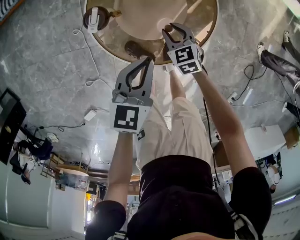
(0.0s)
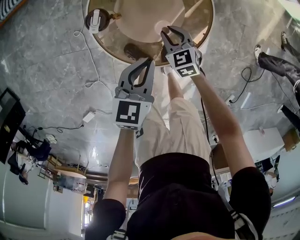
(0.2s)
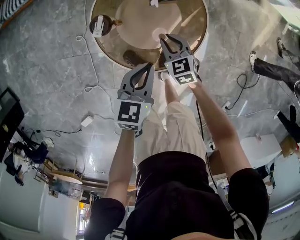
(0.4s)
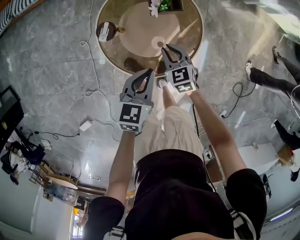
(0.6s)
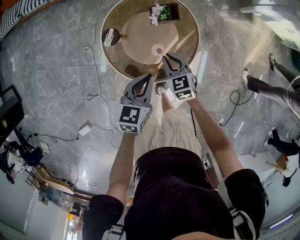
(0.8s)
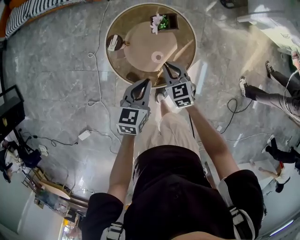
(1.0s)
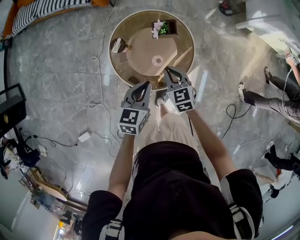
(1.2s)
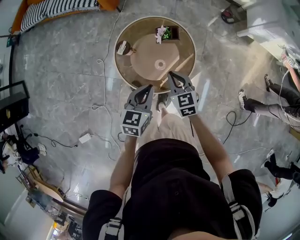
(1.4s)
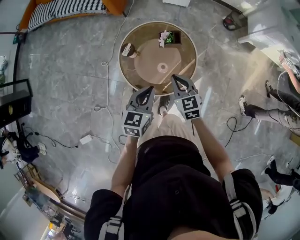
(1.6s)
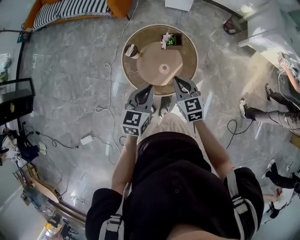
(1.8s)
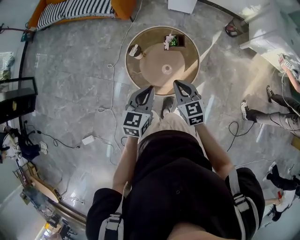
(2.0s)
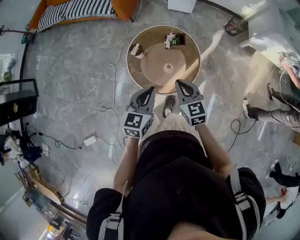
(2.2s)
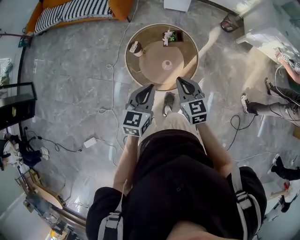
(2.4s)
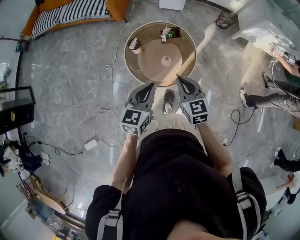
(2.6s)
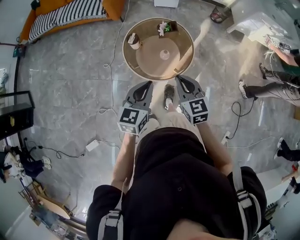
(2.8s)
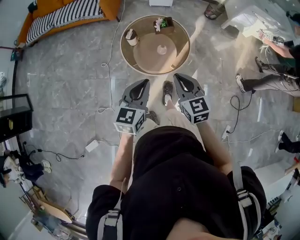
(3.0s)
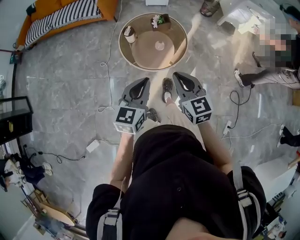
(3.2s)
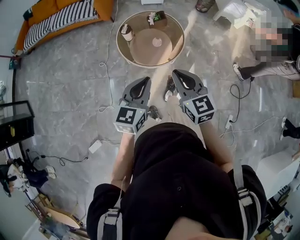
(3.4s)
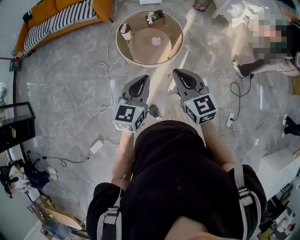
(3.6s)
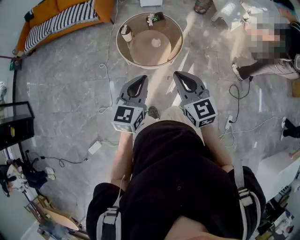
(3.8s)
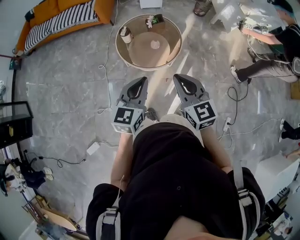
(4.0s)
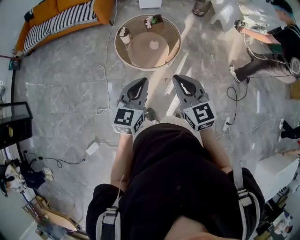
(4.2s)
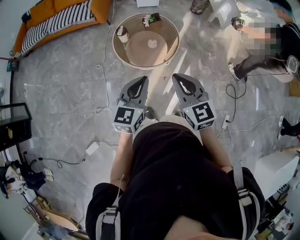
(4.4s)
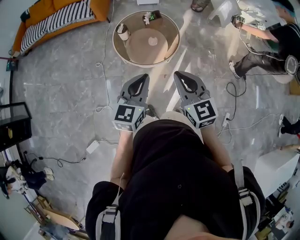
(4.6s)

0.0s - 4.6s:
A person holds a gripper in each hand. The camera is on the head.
0.0s - 1.6s: The left gripper travels upward by some 20 cm. The right gripper moves upward, approximately 30 cm, and closes its fingers.
1.6s - 3.0s: The right gripper moves backward and upward, about 25 cm. Meanwhile the left gripper heads backward, upward and to the left, covering some 25 cm.
3.0s - 4.6s: The right gripper goes some 15 cm backward and upward. Meanwhile the left gripper shifts about 10 cm backward.

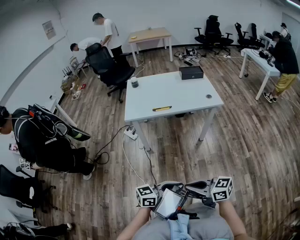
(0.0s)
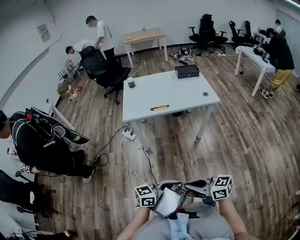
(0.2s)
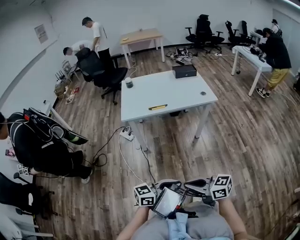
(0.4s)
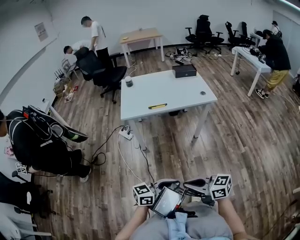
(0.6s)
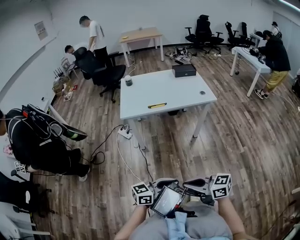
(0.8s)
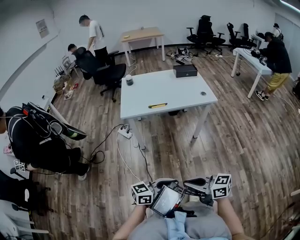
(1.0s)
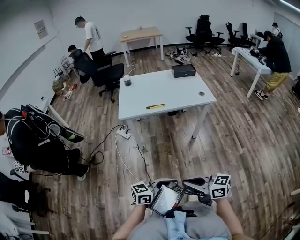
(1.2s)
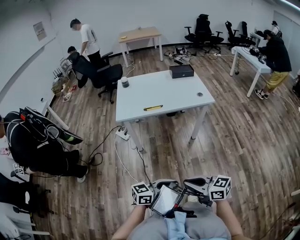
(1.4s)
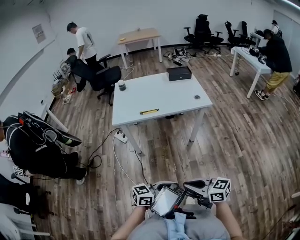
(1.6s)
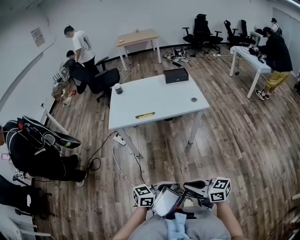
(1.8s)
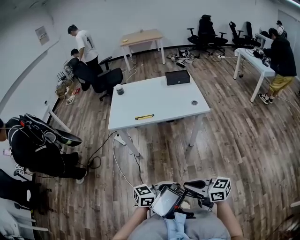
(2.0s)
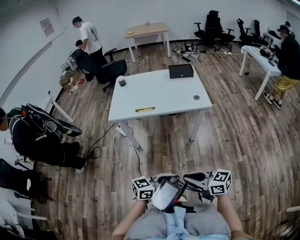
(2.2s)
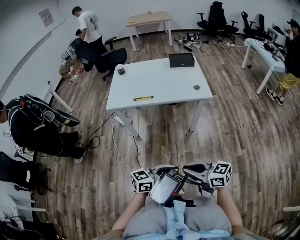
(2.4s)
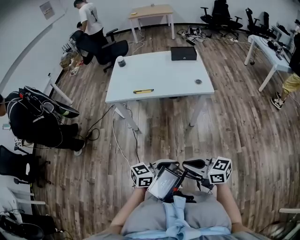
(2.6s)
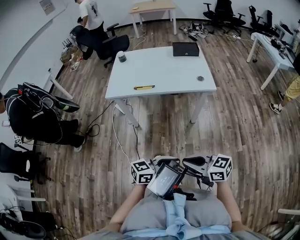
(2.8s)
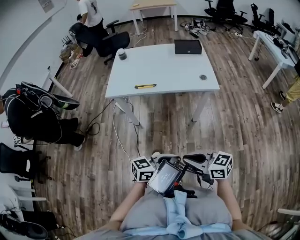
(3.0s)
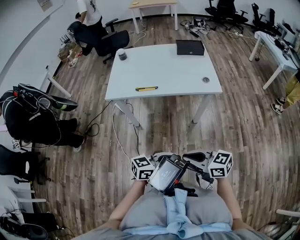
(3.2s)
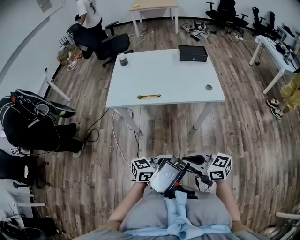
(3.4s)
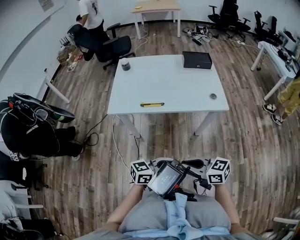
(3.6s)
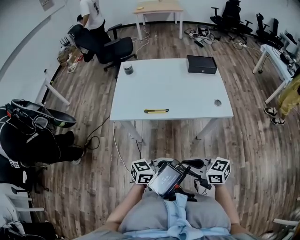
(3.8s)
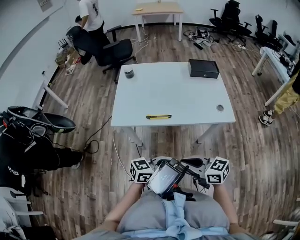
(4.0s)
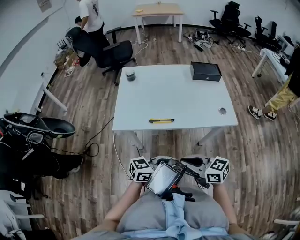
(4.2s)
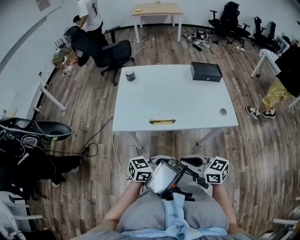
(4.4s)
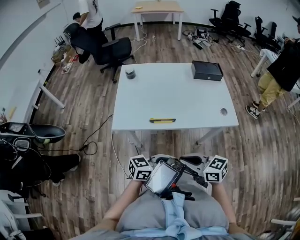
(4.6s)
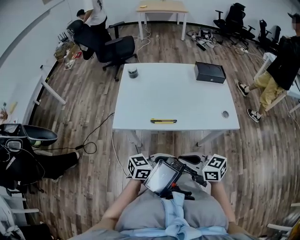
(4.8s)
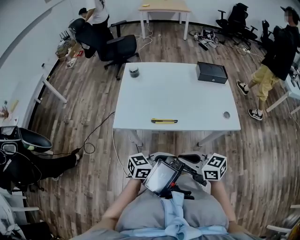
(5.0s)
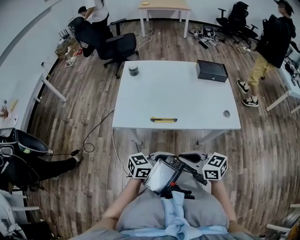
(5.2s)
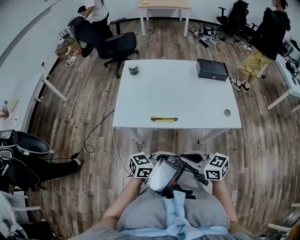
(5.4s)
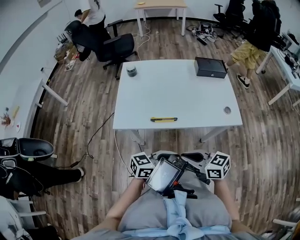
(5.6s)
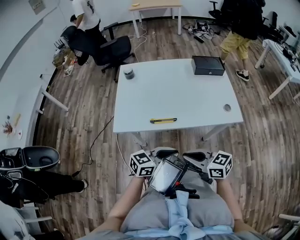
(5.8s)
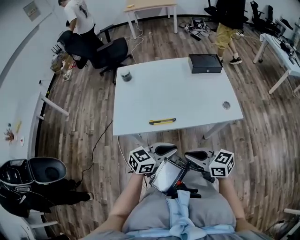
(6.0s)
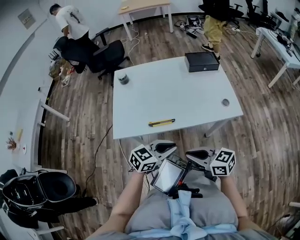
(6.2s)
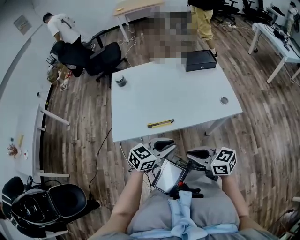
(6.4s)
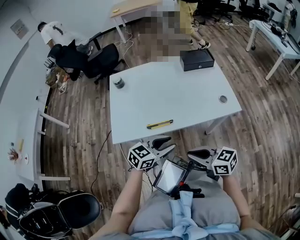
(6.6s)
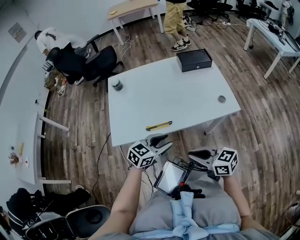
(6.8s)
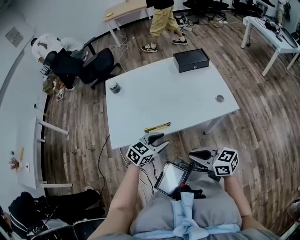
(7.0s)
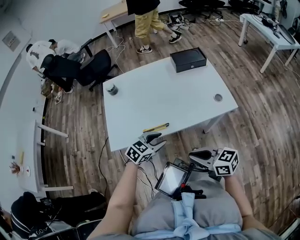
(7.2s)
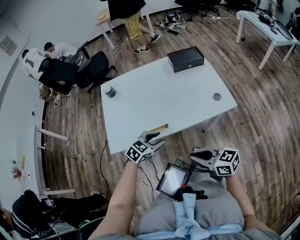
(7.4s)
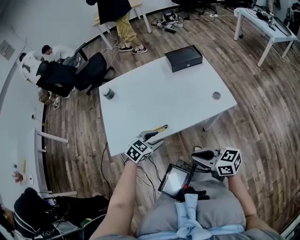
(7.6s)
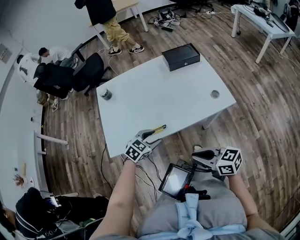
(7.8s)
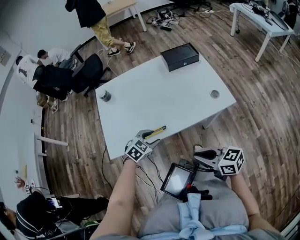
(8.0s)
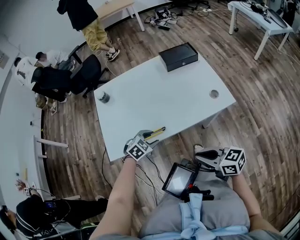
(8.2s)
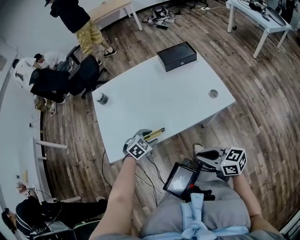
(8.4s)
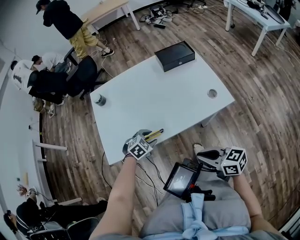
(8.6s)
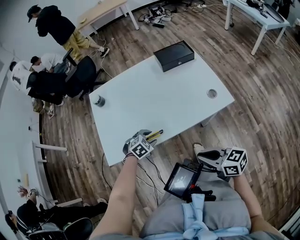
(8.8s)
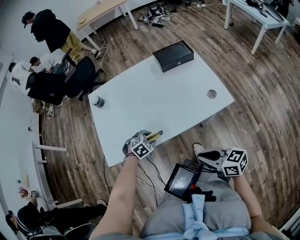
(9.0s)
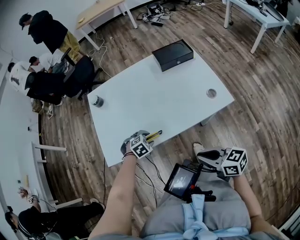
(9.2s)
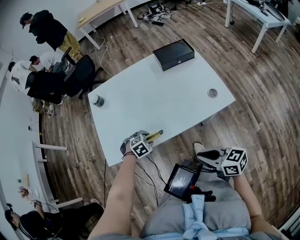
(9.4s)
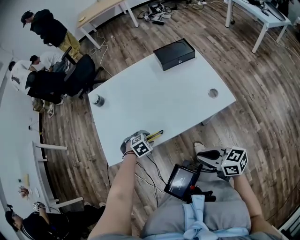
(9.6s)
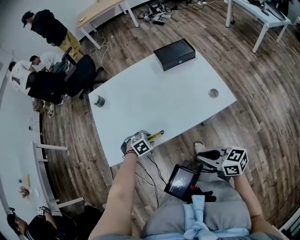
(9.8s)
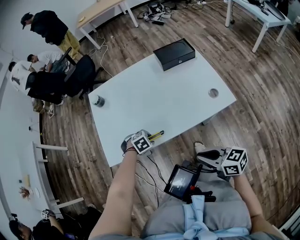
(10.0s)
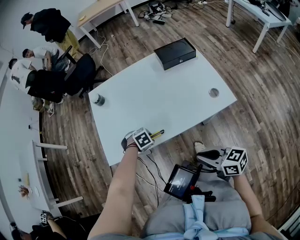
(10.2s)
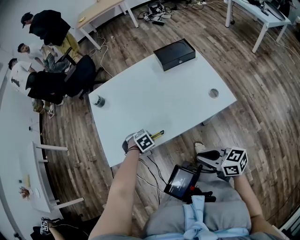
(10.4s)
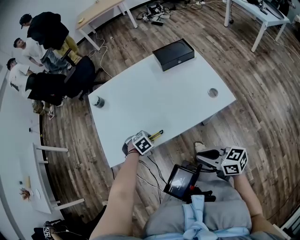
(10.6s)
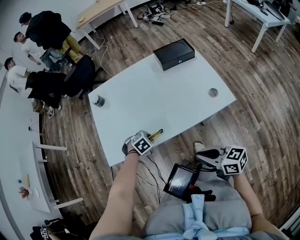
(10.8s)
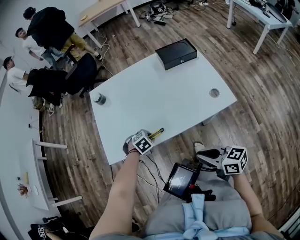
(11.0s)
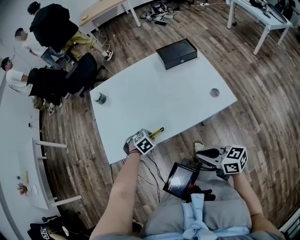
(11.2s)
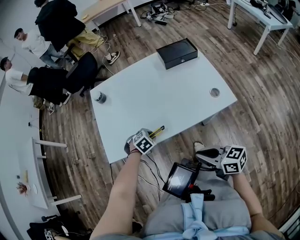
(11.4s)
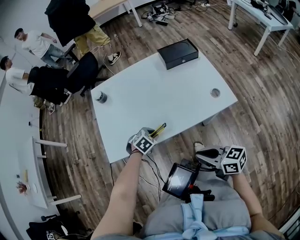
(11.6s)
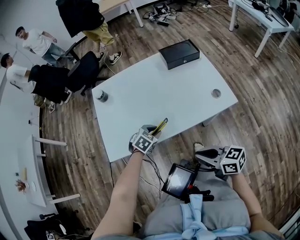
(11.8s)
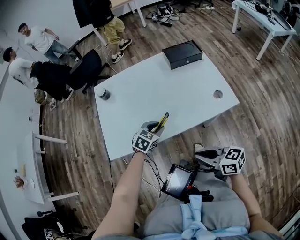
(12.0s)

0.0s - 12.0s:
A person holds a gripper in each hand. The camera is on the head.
0.0s - 1.6s: The left gripper shifts by approximately 5 cm. Meanwhile the right gripper ends up about 5 cm from where it was.
1.6s - 3.0s: The left gripper ends up about 15 cm from where it was; the right gripper changes place by roughly 15 cm.
3.0s - 4.4s: The left gripper changes place by some 30 cm. The right gripper ends up about 30 cm from where it was.
4.4s - 6.0s: The left gripper changes place by some 5 cm.
6.0s - 7.6s: The left gripper changes place by roughly 15 cm, swivels roughly 30 degrees, and opens its fingers.
7.6s - 9.0s: The right gripper ends up approximately 5 cm from where it was. Meanwhile the left gripper goes about 10 cm downward, and turns by approximately 30 degrees.
9.0s - 10.4s: The grippers make only small movements.
10.4s - 12.0s: The left gripper moves upward, roughly 10 cm, and tilts its fingers some 30 degrees upward.

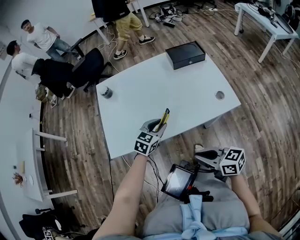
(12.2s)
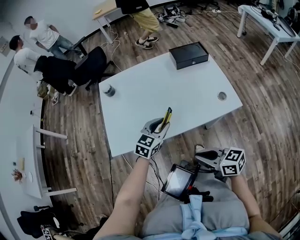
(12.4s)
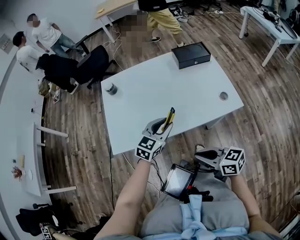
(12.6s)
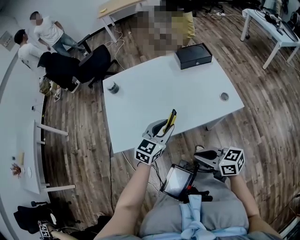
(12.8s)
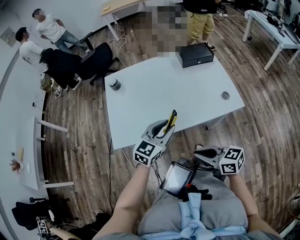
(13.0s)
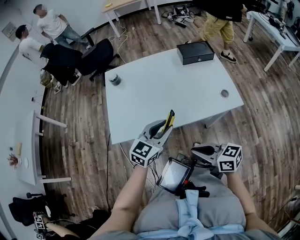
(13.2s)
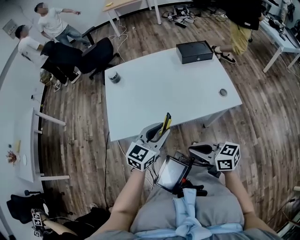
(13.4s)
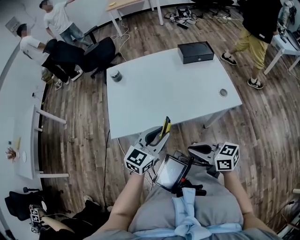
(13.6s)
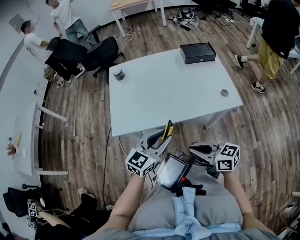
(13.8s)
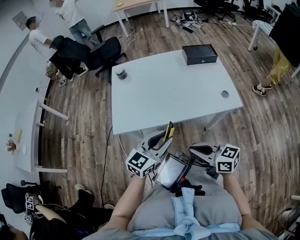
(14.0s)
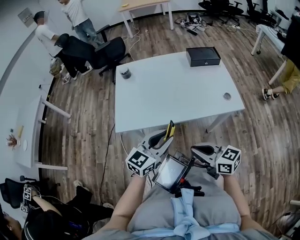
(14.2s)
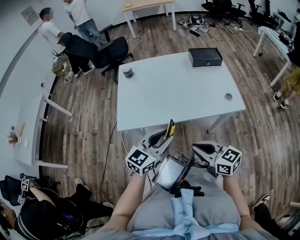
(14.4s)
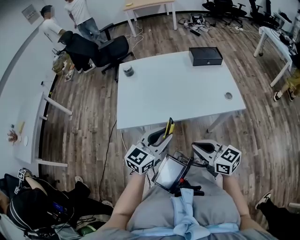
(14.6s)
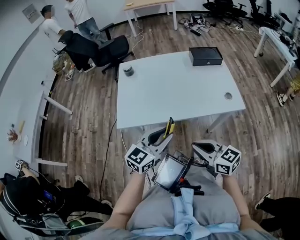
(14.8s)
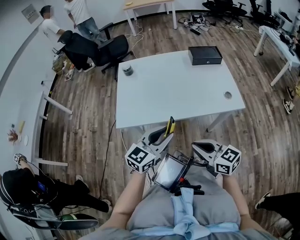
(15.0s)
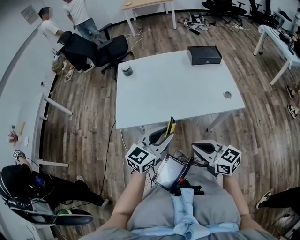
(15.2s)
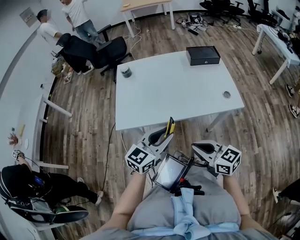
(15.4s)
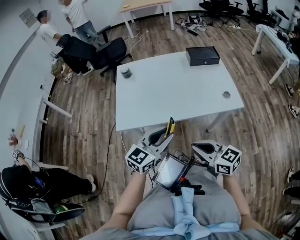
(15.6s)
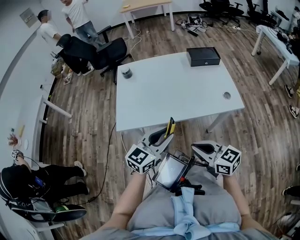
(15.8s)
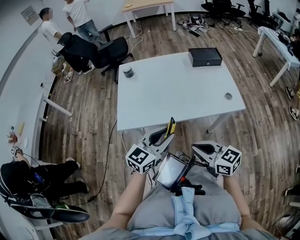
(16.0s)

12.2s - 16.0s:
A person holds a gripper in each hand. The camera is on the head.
12.2s - 13.4s: The left gripper shifts approximately 15 cm upward and backward.
13.4s - 14.8s: The left gripper moves backward, roughly 5 cm.
14.8s - 16.0s: Neither gripper changes place.

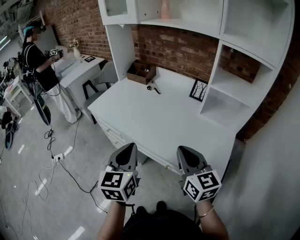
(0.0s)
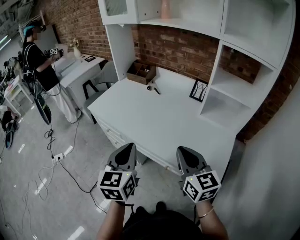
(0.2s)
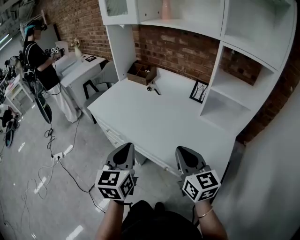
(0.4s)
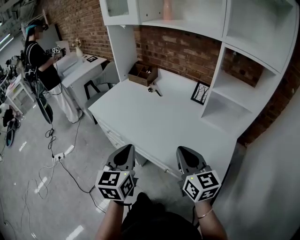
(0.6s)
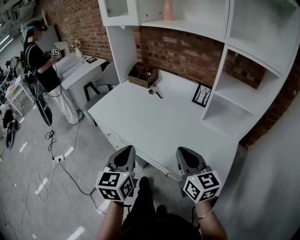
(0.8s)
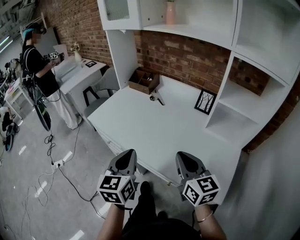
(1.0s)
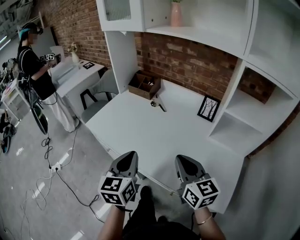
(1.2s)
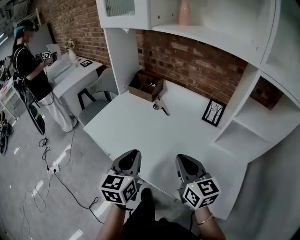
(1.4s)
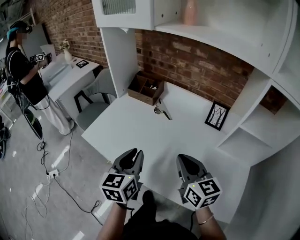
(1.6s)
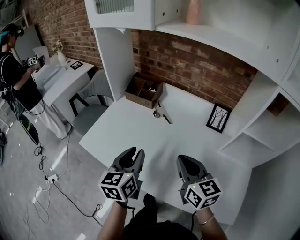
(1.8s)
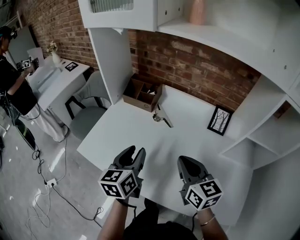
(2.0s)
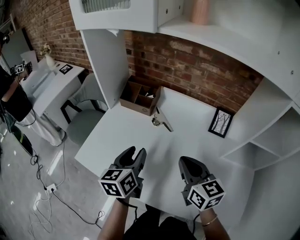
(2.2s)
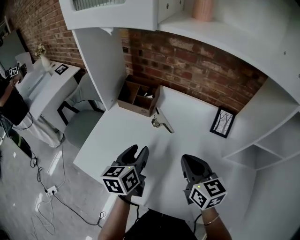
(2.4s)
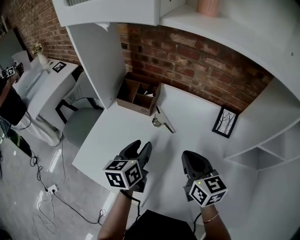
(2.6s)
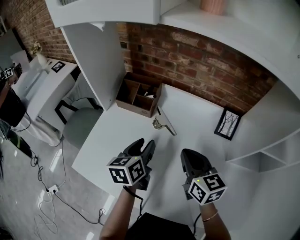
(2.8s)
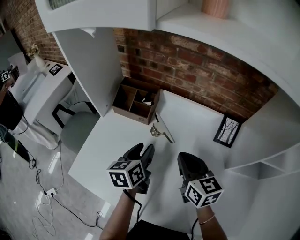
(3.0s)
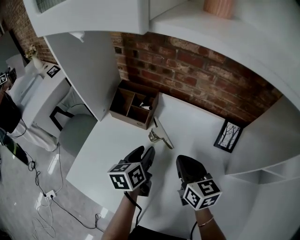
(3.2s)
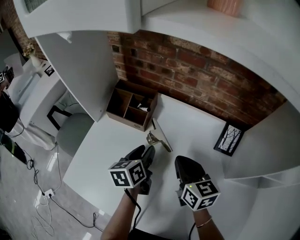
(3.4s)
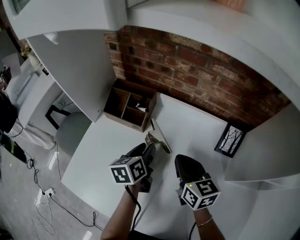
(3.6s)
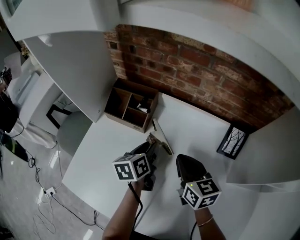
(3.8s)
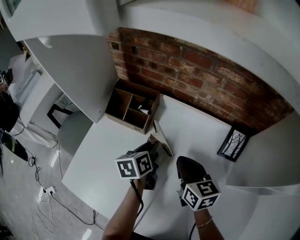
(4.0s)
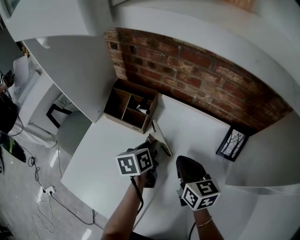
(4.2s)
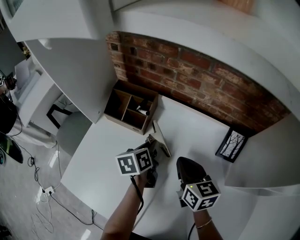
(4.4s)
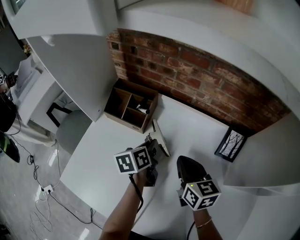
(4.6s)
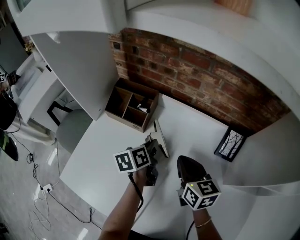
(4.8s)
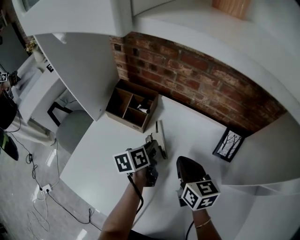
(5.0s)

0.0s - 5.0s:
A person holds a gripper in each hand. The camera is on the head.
0.0s - 1.6s: The grippers both shift forward by roughly 25 cm.
1.6s - 3.4s: The right gripper moves forward, some 25 cm; the left gripper is displaced forward and downward by some 30 cm, turns by some 30 degrees, and opens.
3.4s - 5.0s: The left gripper ends up approximately 5 cm from where it was, and closes.
